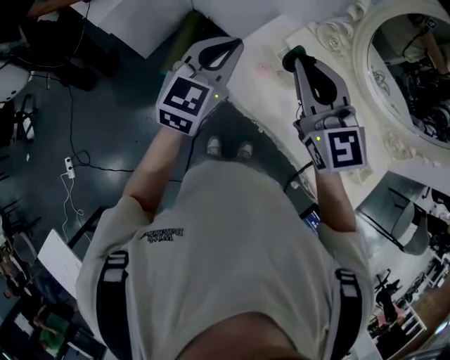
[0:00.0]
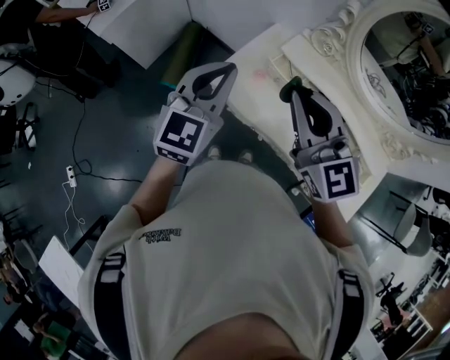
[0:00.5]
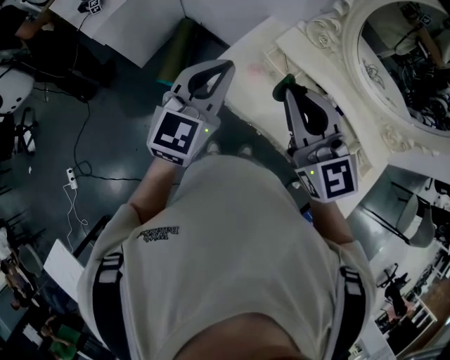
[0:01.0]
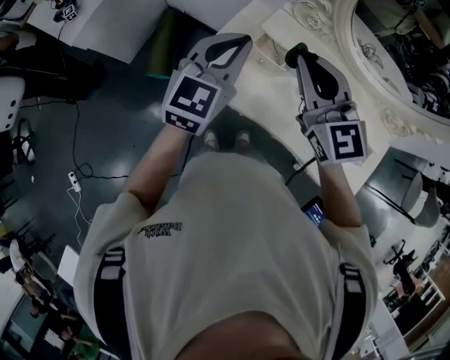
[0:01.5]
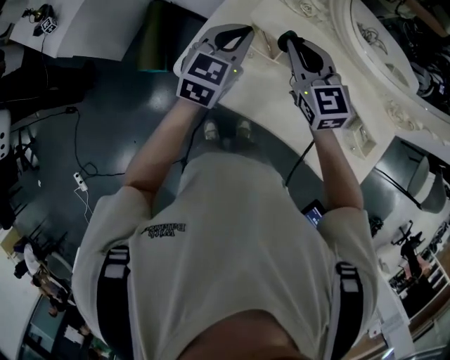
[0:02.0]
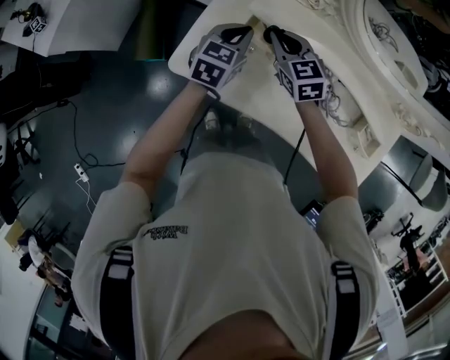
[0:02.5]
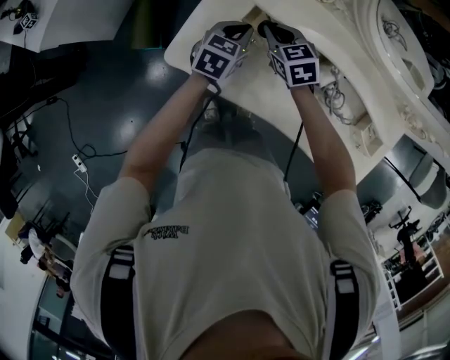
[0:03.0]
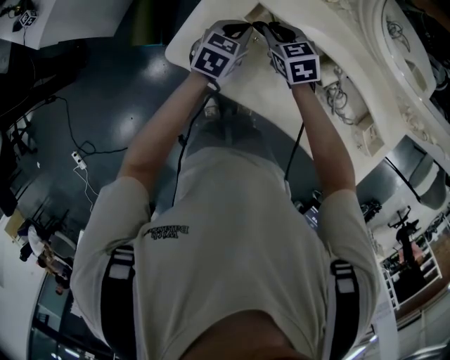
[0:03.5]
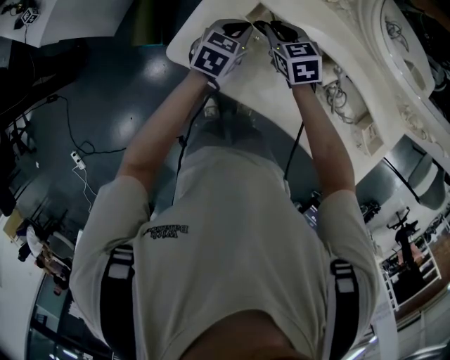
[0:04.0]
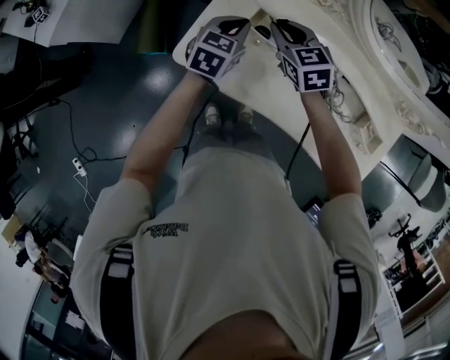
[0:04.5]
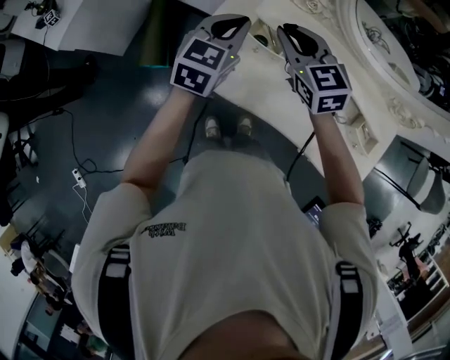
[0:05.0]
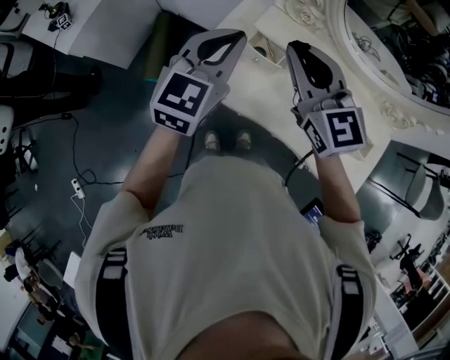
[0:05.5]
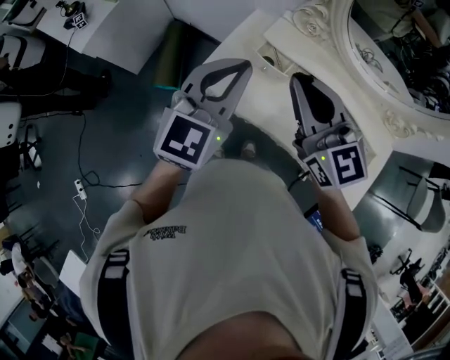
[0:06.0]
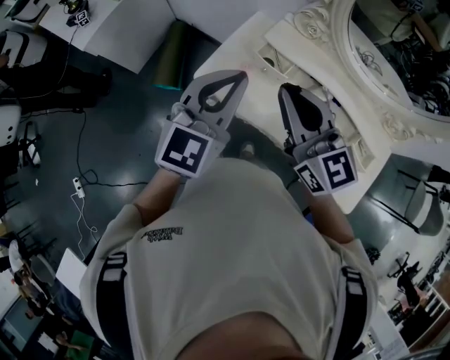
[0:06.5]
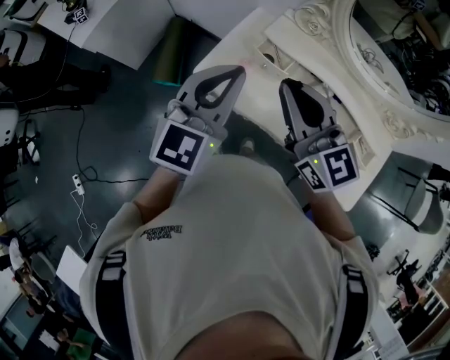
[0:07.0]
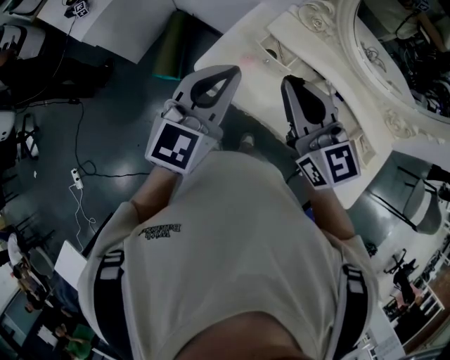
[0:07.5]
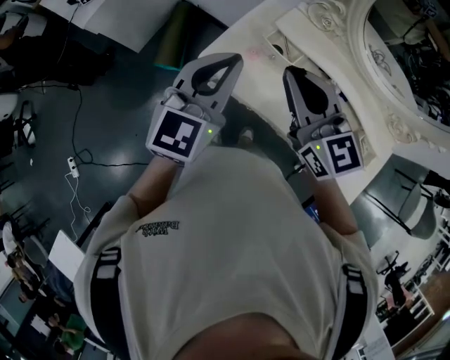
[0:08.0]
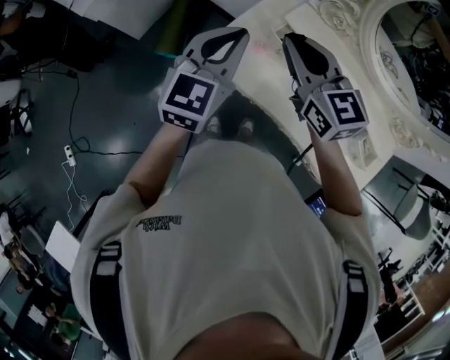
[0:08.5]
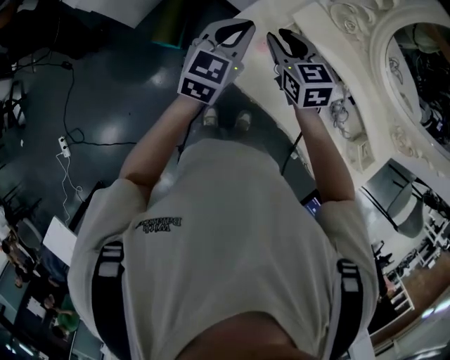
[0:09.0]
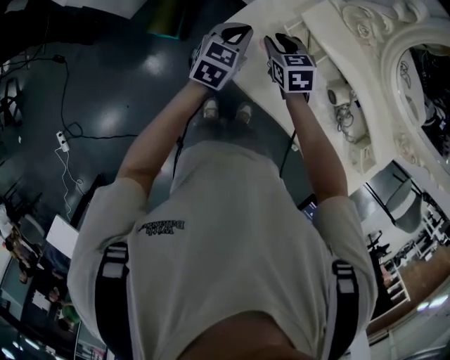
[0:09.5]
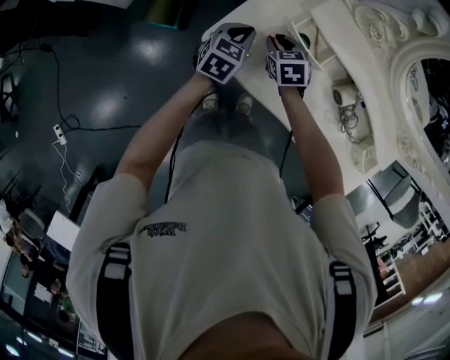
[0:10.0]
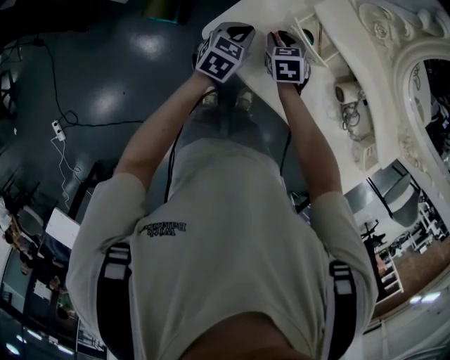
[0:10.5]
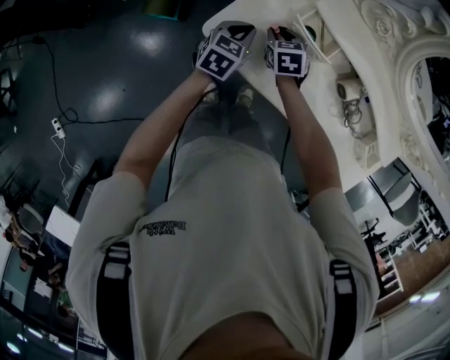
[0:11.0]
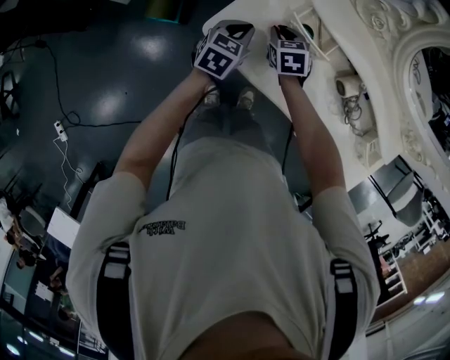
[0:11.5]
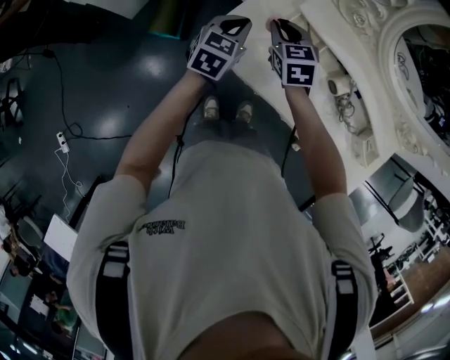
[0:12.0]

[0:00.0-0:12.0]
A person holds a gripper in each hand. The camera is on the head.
0:00.0 to 0:02.0: The left gripper moves to the right, downward and forward, approximately 20 cm. The right gripper travels downward, to the right and forward by about 25 cm, and turns by approximately 20 degrees.
0:02.0 to 0:04.0: Both grippers move downward, some 20 cm. The left gripper rotates some 20 degrees. Meanwhile the right gripper turns by roughly 30 degrees.
0:04.0 to 0:06.0: Both grippers travel together upward and backward, roughly 40 cm. The left gripper points its fingers roughly 30 degrees further upward. Meanwhile the right gripper points its fingers about 40 degrees further upward.
0:06.0 to 0:08.0: The grippers make only small movements.
0:08.0 to 0:10.0: Both grippers travel together downward and forward, about 40 cm. The left gripper changes its angle by approximately 30 degrees. The right gripper points its fingers about 50 degrees further downward.
0:10.0 to 0:12.0: Both grippers travel together upward, about 10 cm.

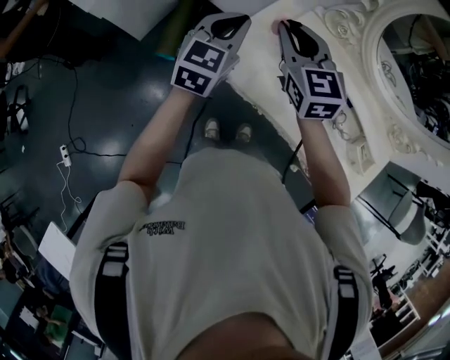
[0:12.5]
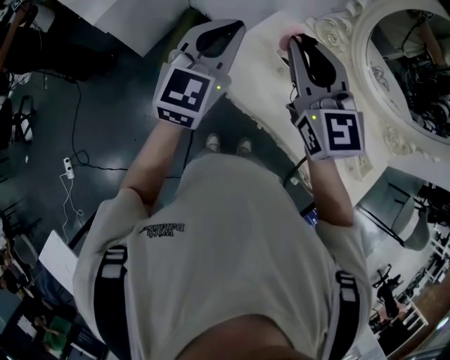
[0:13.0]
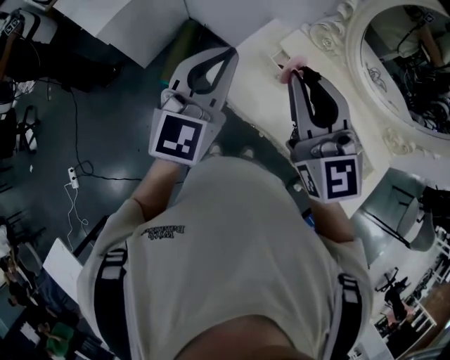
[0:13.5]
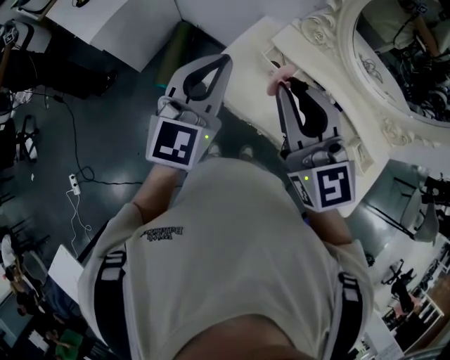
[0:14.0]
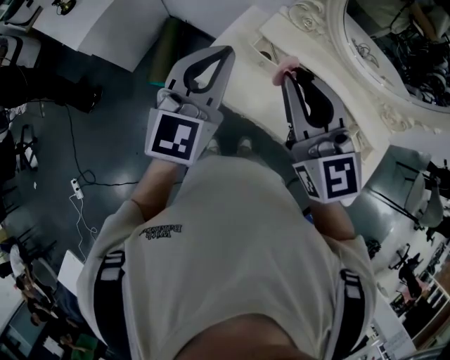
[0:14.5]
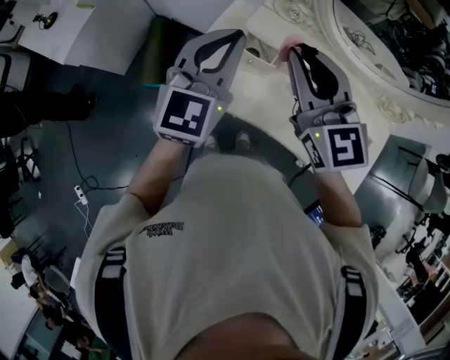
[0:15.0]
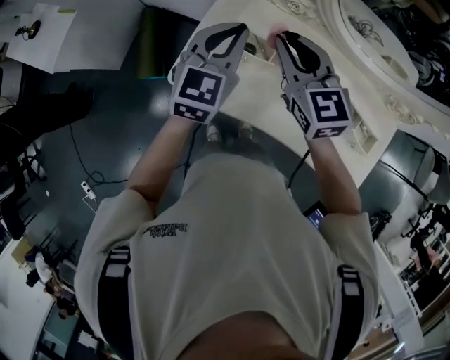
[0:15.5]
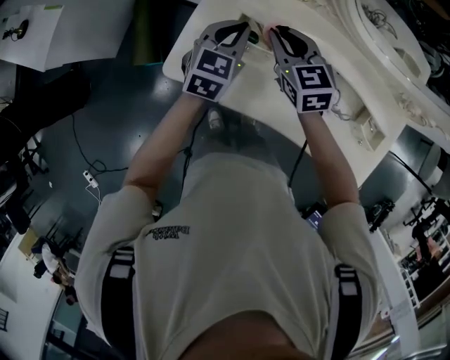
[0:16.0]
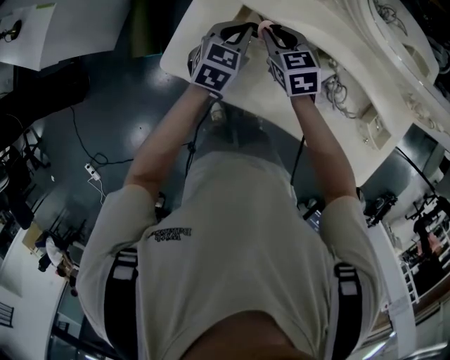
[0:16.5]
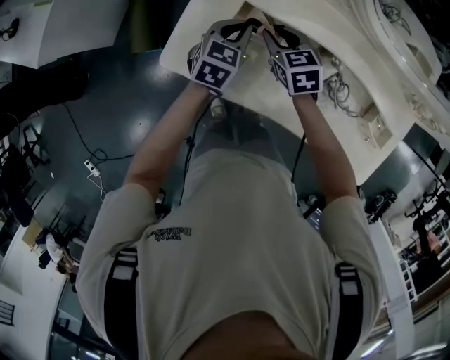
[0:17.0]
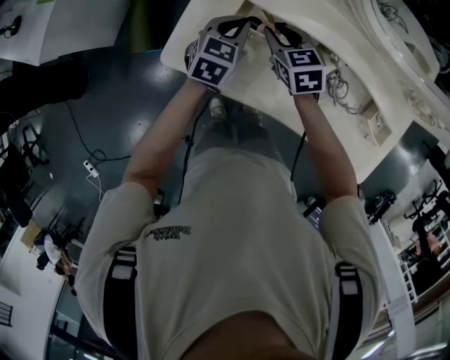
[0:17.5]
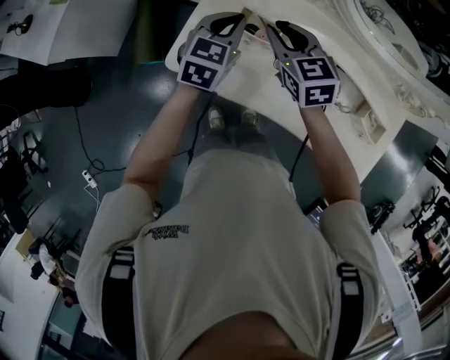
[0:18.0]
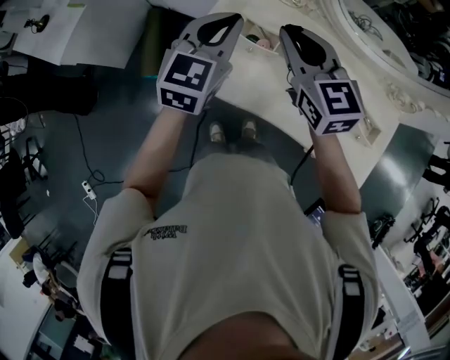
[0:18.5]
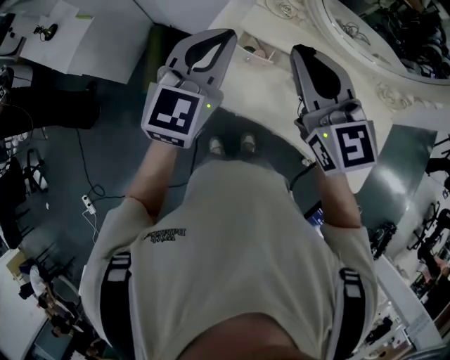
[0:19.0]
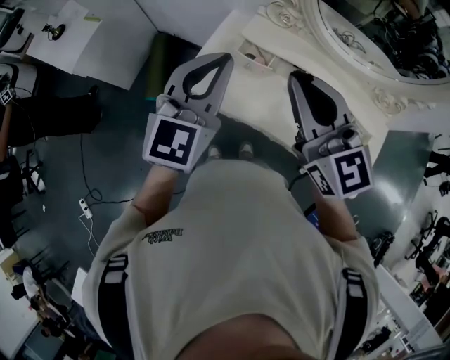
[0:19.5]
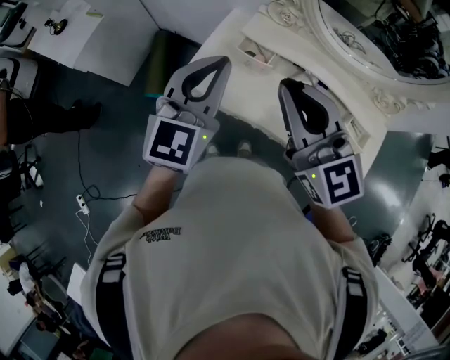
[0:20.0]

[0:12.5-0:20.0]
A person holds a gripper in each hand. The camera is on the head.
0:12.5 to 0:14.5: The right gripper travels backward, upward and to the right by some 20 cm; the left gripper is displaced upward, backward and to the right by some 15 cm.
0:14.5 to 0:16.5: The two grippers go about 40 cm downward and forward. The right gripper tilts its fingers some 40 degrees downward. The left gripper tilts its fingers about 30 degrees downward.
0:16.5 to 0:18.0: Both grippers travel together upward, about 10 cm.
0:18.0 to 0:20.0: Both grippers move upward and backward, about 35 cm. The left gripper rotates approximately 30 degrees. The right gripper tilts its fingers some 30 degrees upward.

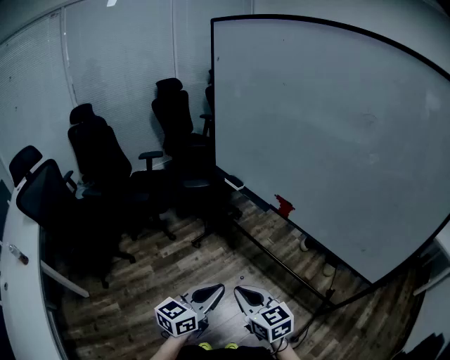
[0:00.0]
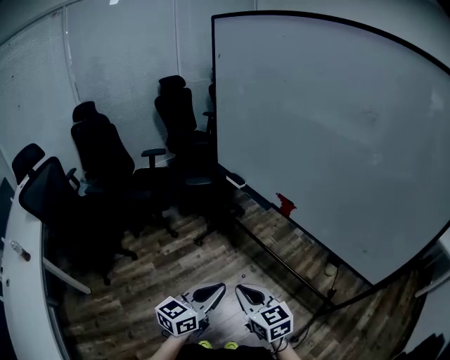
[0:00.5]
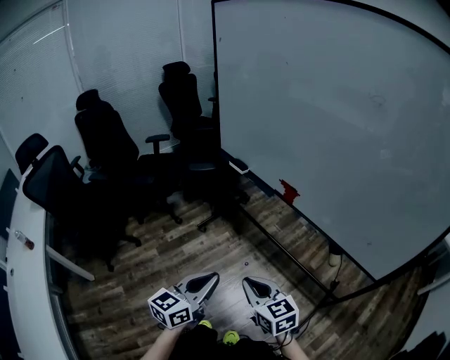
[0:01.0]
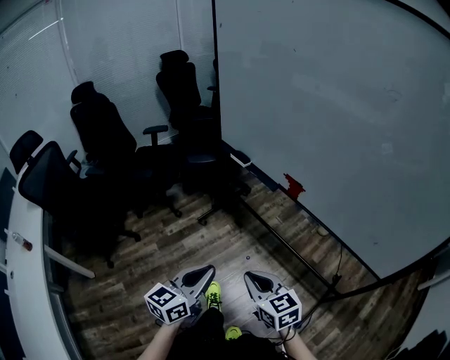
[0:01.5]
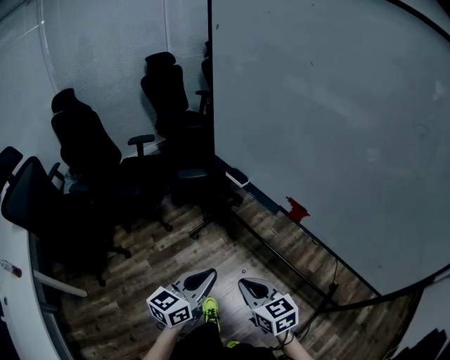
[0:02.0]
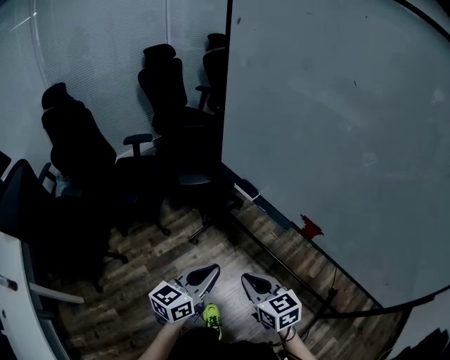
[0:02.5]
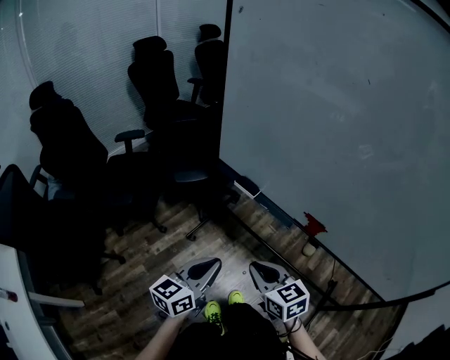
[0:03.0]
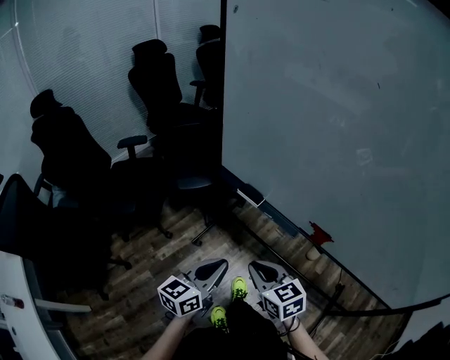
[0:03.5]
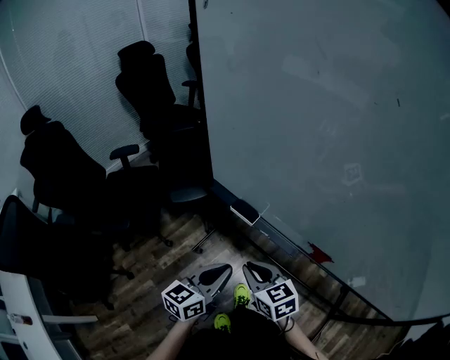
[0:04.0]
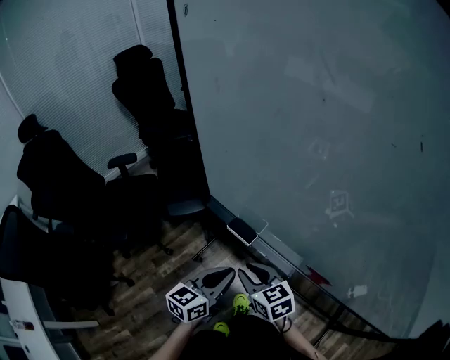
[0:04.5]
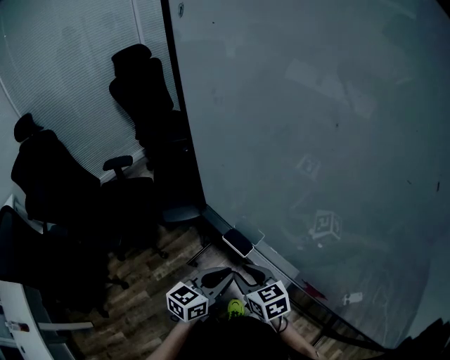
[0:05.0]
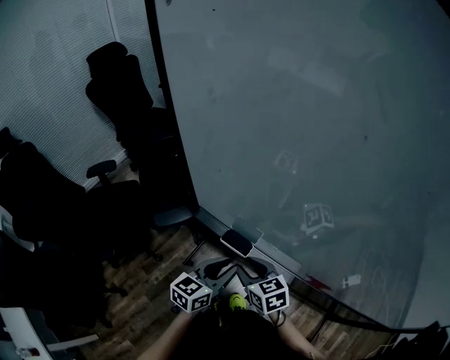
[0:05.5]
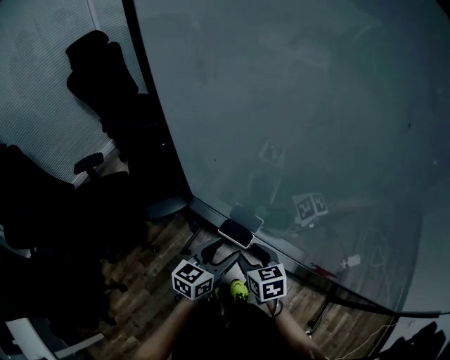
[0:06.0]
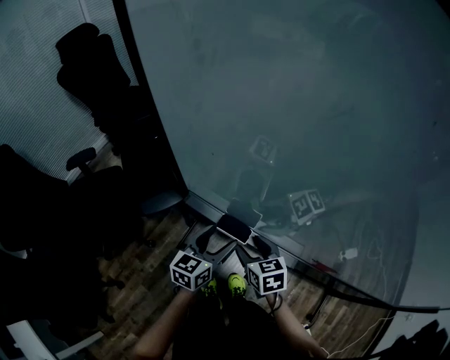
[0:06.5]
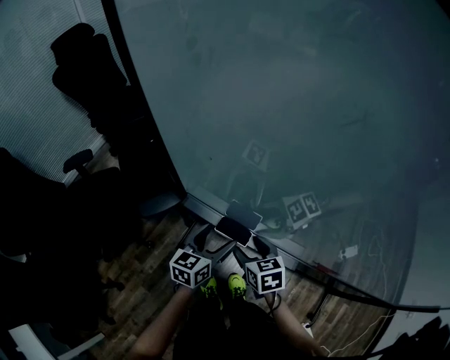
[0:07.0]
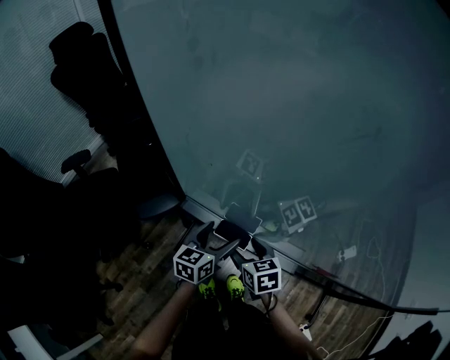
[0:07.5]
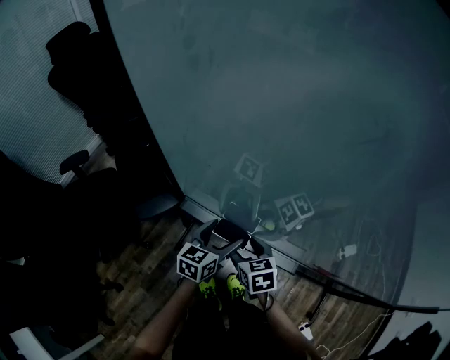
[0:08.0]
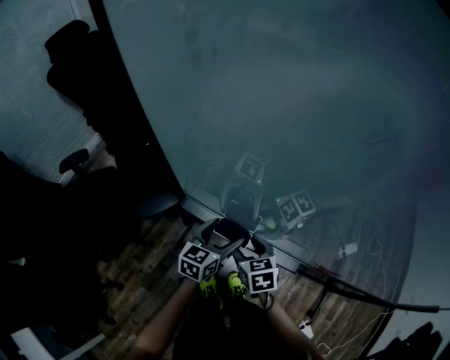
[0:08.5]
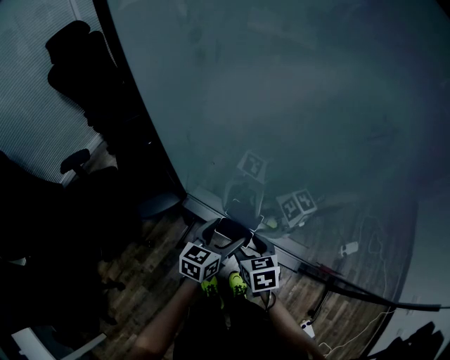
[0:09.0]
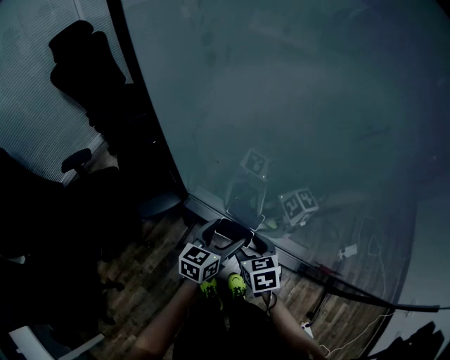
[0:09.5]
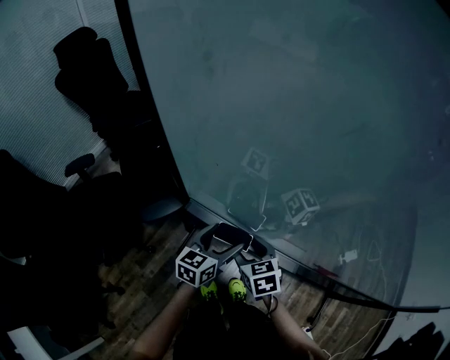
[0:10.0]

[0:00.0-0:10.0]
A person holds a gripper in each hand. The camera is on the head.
0:00.0 to 0:02.0: Both grippers travel together forward, about 10 cm.
0:02.0 to 0:04.0: Both grippers travel together forward, about 20 cm.
0:04.0 to 0:06.0: The two grippers go some 15 cm forward and downward. The left gripper opens up. The right gripper turns by approximately 20 degrees, and opens.
0:06.0 to 0:08.0: The left gripper shifts some 5 cm forward, and opens.
0:08.0 to 0:10.0: The grippers move only a little.
